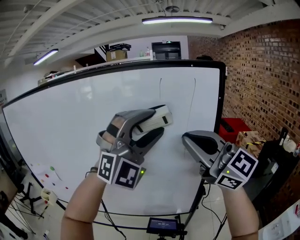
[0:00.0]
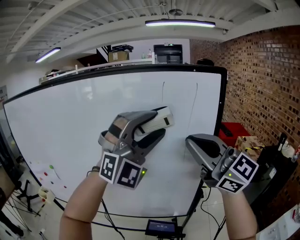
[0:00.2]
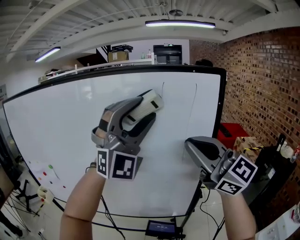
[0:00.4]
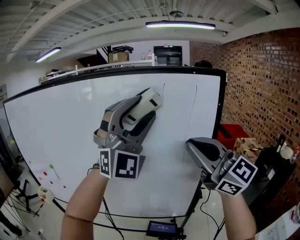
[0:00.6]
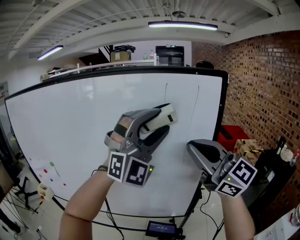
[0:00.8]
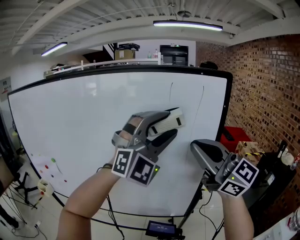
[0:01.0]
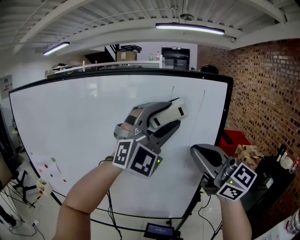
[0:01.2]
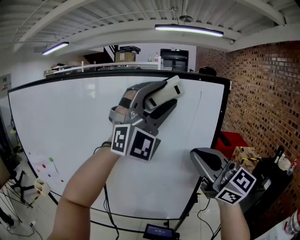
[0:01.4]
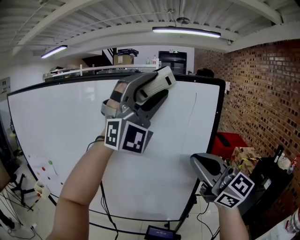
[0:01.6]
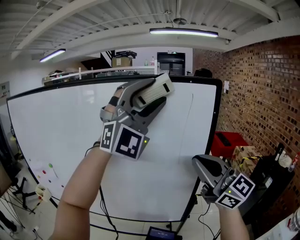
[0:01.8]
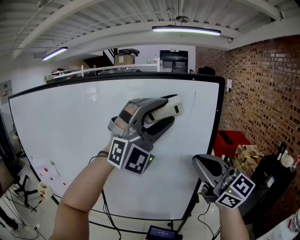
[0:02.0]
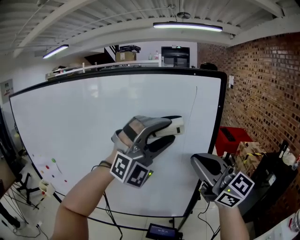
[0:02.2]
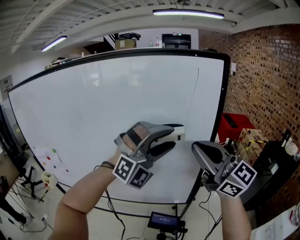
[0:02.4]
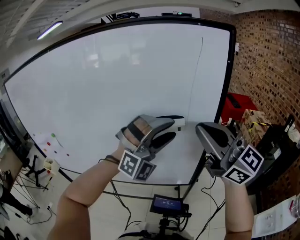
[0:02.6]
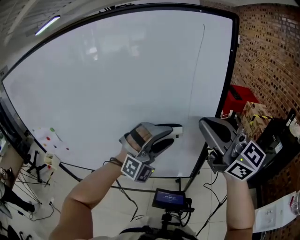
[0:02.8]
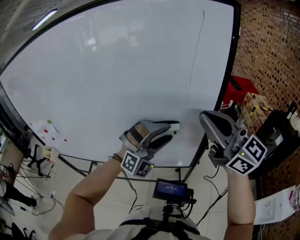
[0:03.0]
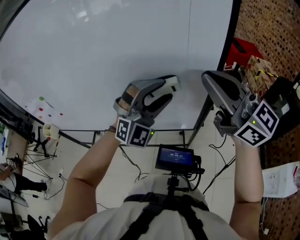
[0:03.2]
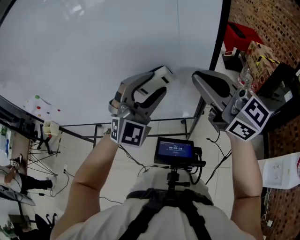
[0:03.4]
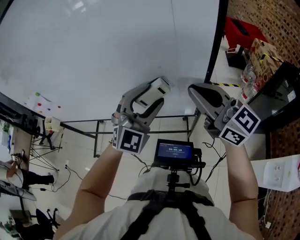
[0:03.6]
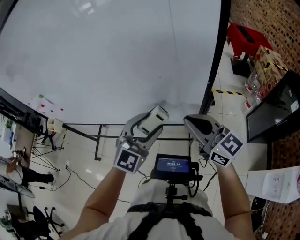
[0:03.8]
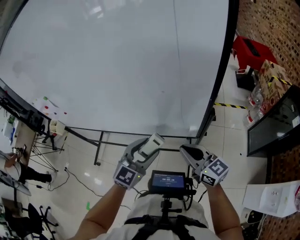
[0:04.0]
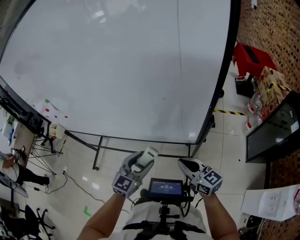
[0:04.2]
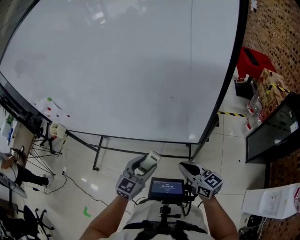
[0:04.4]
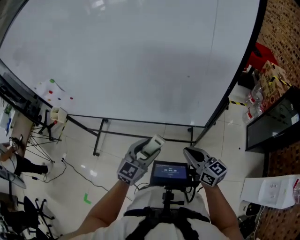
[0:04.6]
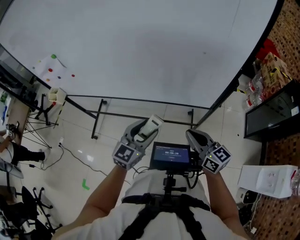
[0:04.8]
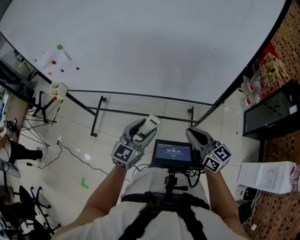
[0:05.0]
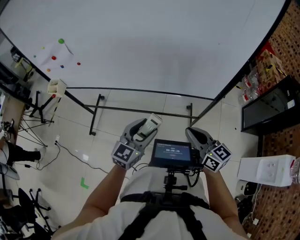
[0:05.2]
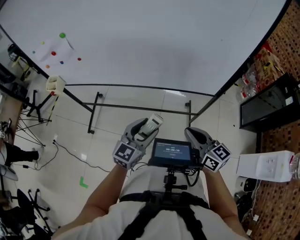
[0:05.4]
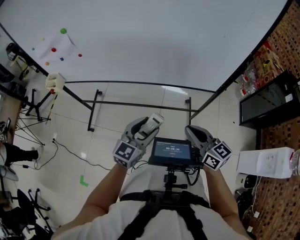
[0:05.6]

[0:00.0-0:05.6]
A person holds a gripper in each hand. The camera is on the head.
0:00.0 to 0:01.4: The left gripper swings up and down, approximately 10 cm each way, with 2 reversals.
0:01.4 to 0:02.8: The right gripper is displaced downward by some 10 cm. The left gripper shifts about 35 cm downward, and rotates some 30 degrees.
0:02.8 to 0:04.2: The right gripper heads downward, covering roughly 40 cm, and swivels roughly 40 degrees; the left gripper is displaced downward by about 25 cm, and twists roughly 80 degrees counterclockwise, seen from behind.
0:04.2 to 0:05.6: Both grippers travel together to the left and backward, approximately 25 cm.

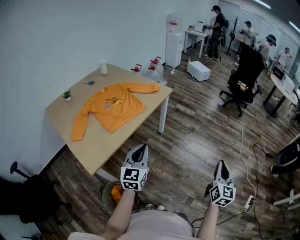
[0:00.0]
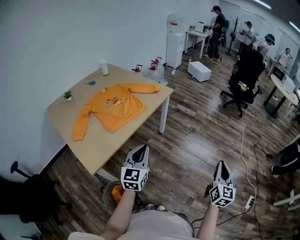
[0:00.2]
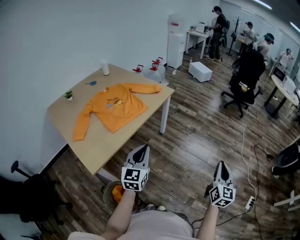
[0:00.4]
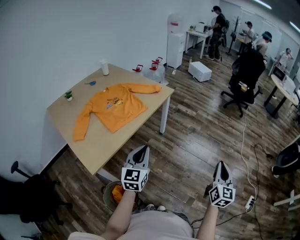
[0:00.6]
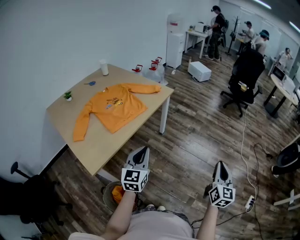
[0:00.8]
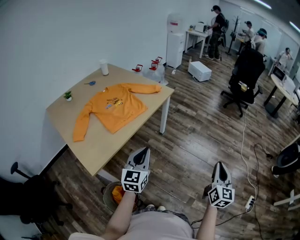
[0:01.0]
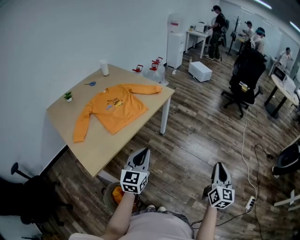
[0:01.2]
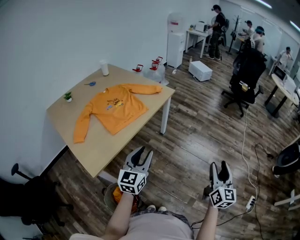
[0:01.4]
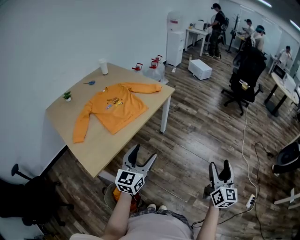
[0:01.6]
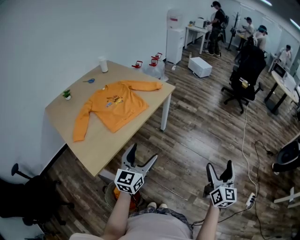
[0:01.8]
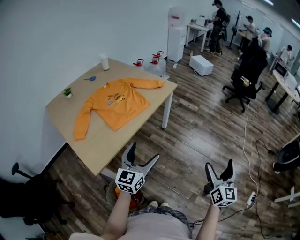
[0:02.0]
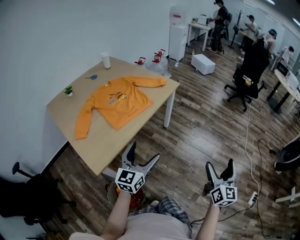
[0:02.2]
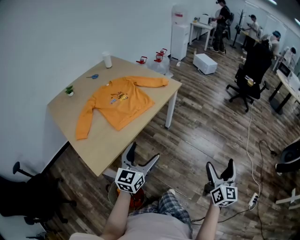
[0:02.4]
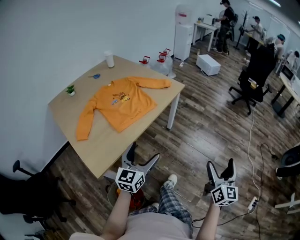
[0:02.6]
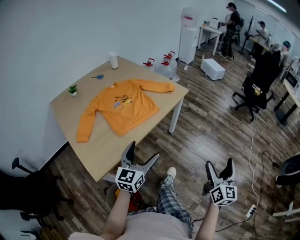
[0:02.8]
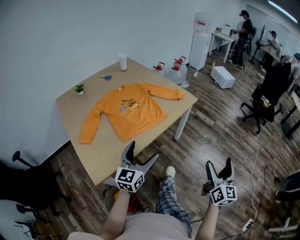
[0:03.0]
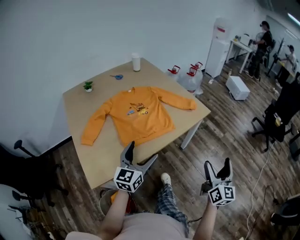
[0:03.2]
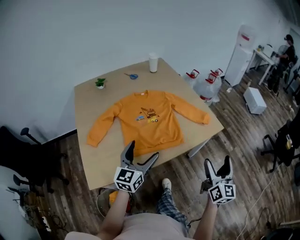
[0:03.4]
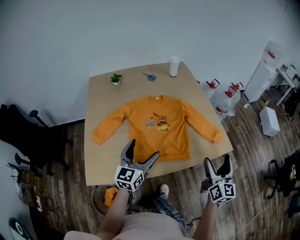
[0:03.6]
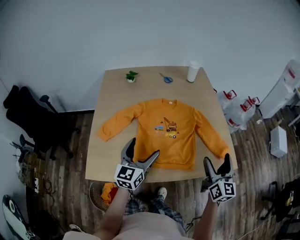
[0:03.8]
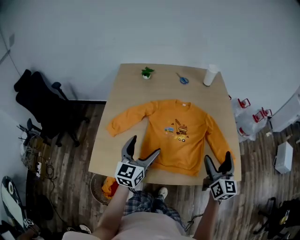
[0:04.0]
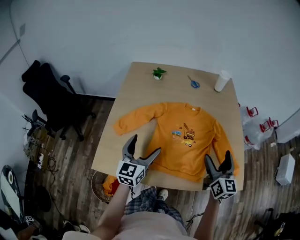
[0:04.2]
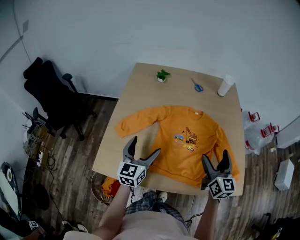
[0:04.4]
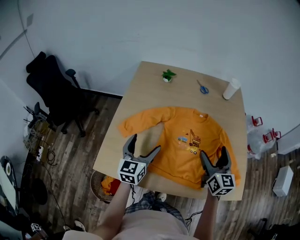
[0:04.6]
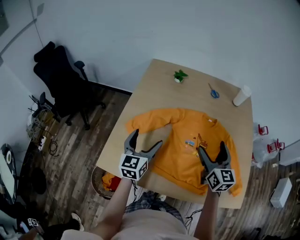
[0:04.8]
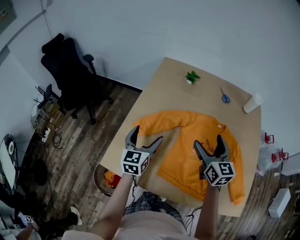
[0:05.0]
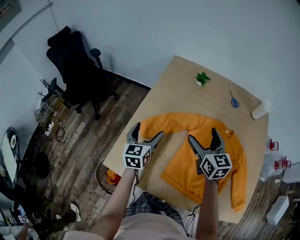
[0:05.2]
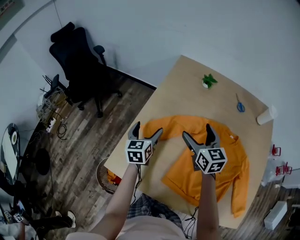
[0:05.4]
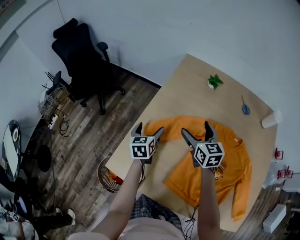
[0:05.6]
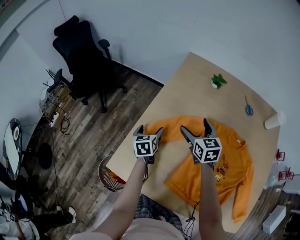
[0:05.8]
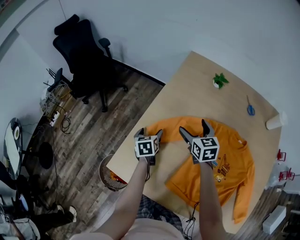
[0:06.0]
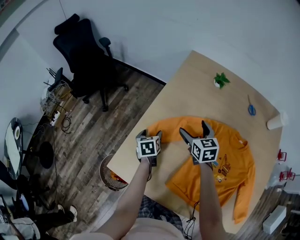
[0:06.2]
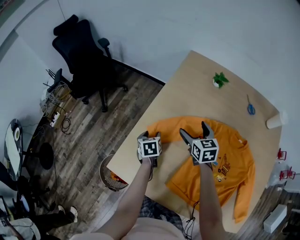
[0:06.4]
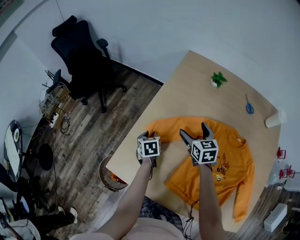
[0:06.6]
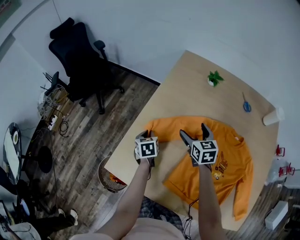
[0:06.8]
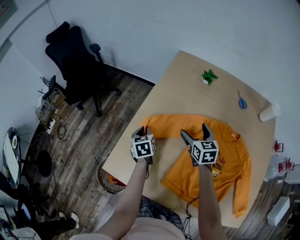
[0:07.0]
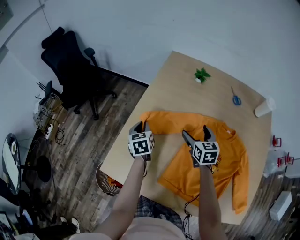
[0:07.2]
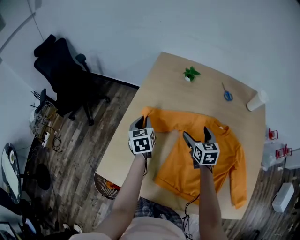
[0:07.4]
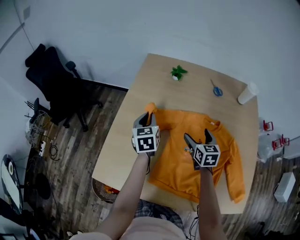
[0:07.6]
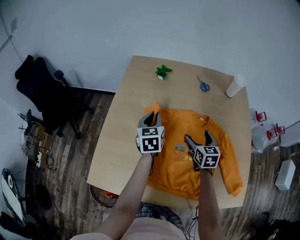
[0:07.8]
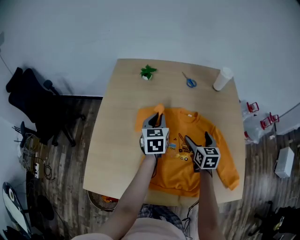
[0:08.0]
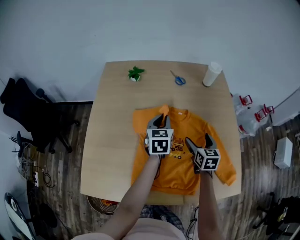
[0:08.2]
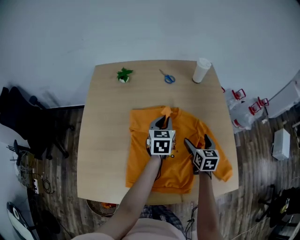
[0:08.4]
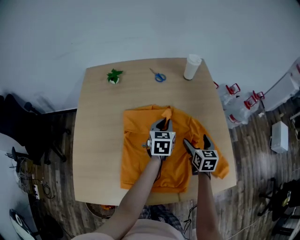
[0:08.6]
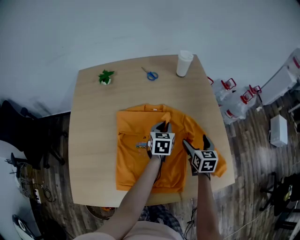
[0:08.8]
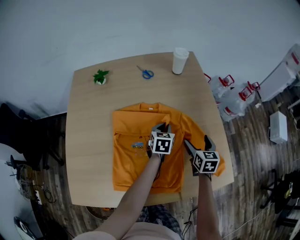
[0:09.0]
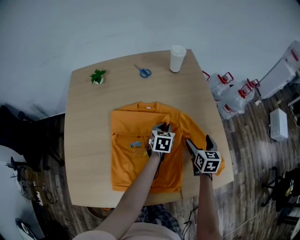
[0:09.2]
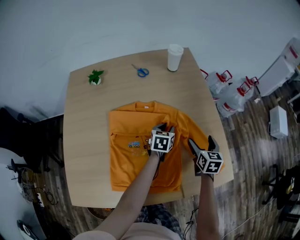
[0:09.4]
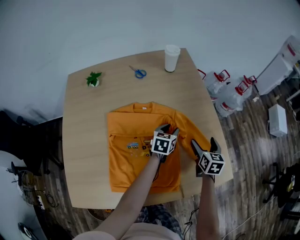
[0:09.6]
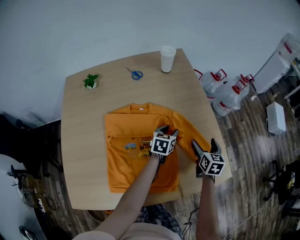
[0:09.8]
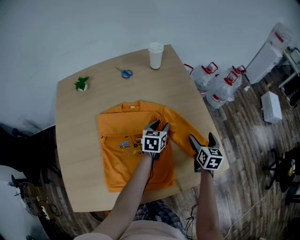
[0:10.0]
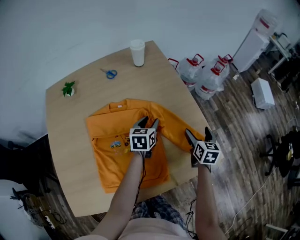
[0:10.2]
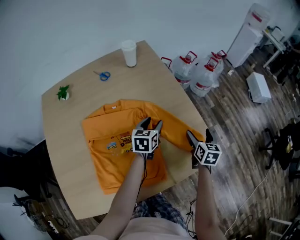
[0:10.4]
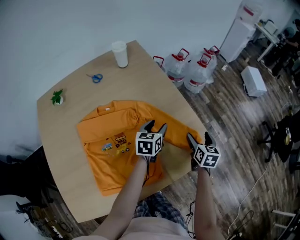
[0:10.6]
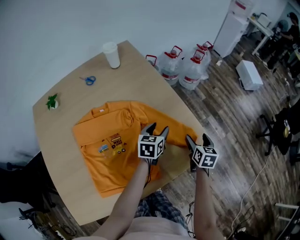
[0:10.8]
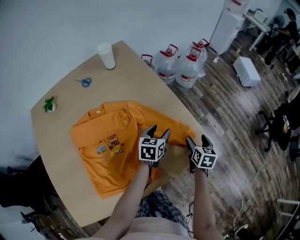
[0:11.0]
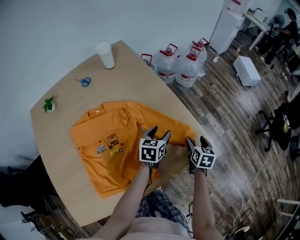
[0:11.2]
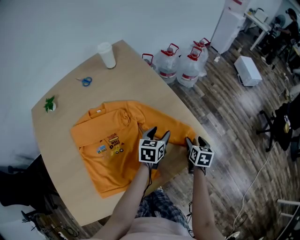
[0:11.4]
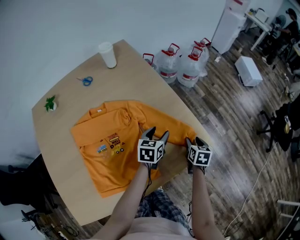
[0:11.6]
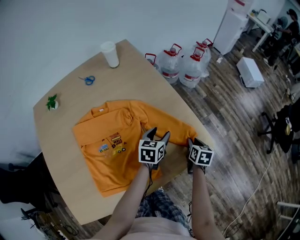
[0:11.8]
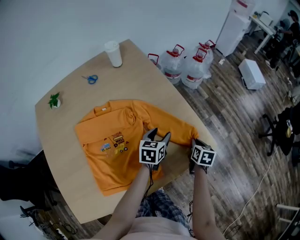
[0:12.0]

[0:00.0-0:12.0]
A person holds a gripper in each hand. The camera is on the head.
0:00.0 to 0:01.6: The left gripper opens. The right gripper opens up.
0:01.6 to 0:03.0: Both grippers move forward and to the left, about 15 cm. The right gripper opens.
0:03.0 to 0:04.4: The right gripper ends up roughly 60 cm from where it was, and swivels roughly 60 degrees. Meanwhile the left gripper shifts by roughly 30 cm, and rotates some 60 degrees.
0:04.4 to 0:06.0: The right gripper moves approximately 40 cm, and turns by about 40 degrees, while the left gripper ends up some 35 cm from where it was, and points its fingers approximately 30 degrees further downward.
0:06.0 to 0:07.6: The right gripper is displaced to the right and backward by roughly 20 cm, and rotates approximately 20 degrees; the left gripper heads to the right and upward, covering some 20 cm, changes its angle by about 20 degrees, and closes.
0:07.6 to 0:09.0: The left gripper shifts by some 40 cm, and swivels about 40 degrees. Meanwhile the right gripper changes place by about 30 cm, and turns by approximately 30 degrees.
0:09.0 to 0:10.4: Both grippers travel together to the right, about 15 cm. The right gripper changes its angle by approximately 20 degrees.
0:10.4 to 0:12.0: The left gripper heads to the right, covering about 10 cm. Meanwhile the right gripper heads downward, to the right and backward, covering roughly 10 cm, and closes up.

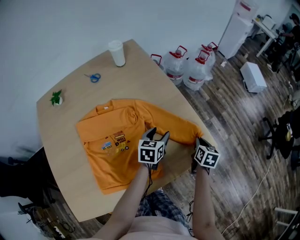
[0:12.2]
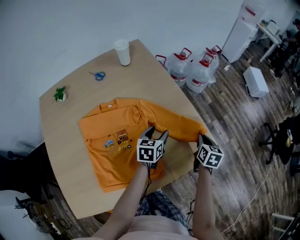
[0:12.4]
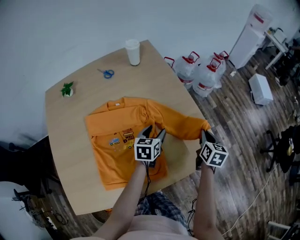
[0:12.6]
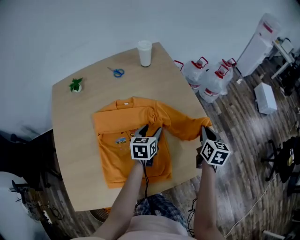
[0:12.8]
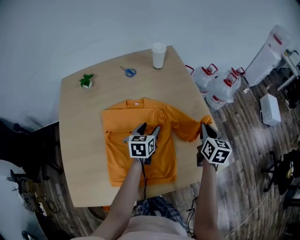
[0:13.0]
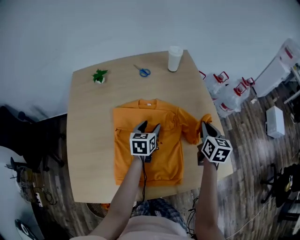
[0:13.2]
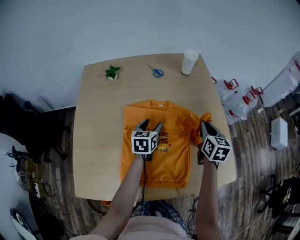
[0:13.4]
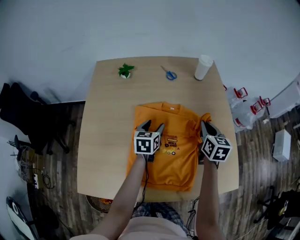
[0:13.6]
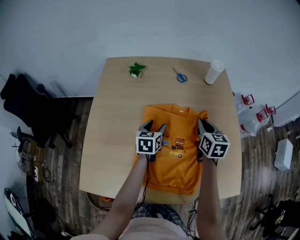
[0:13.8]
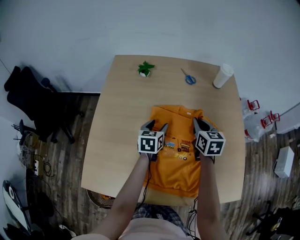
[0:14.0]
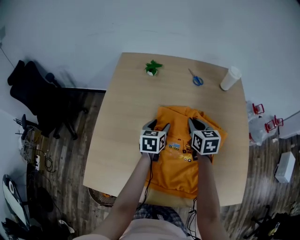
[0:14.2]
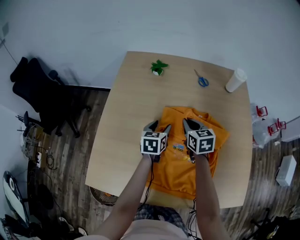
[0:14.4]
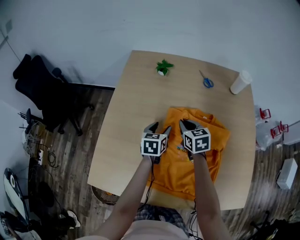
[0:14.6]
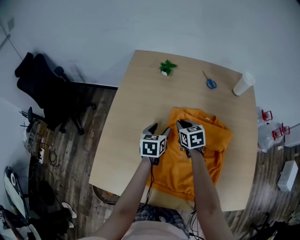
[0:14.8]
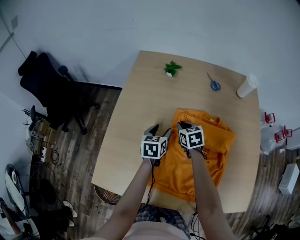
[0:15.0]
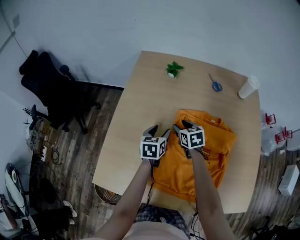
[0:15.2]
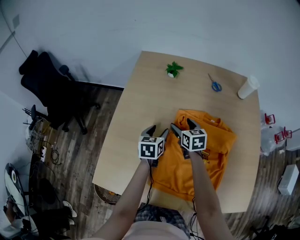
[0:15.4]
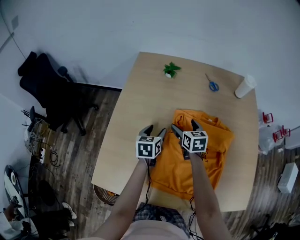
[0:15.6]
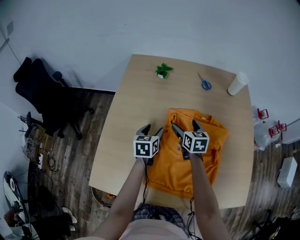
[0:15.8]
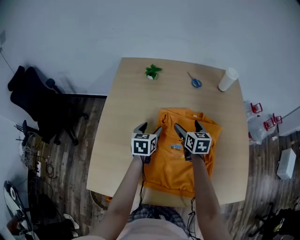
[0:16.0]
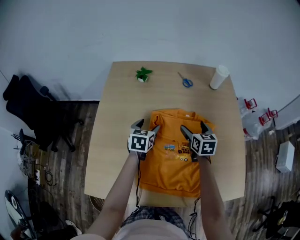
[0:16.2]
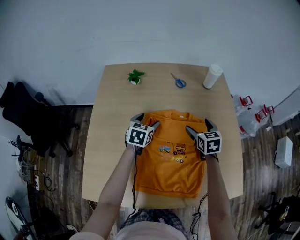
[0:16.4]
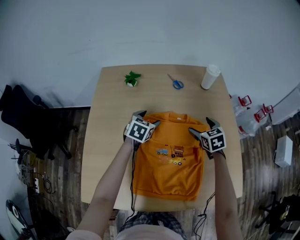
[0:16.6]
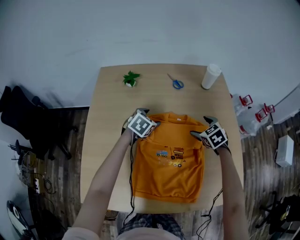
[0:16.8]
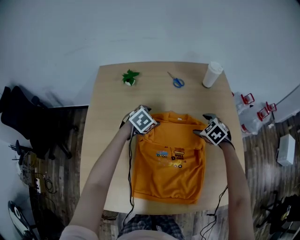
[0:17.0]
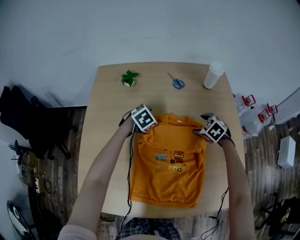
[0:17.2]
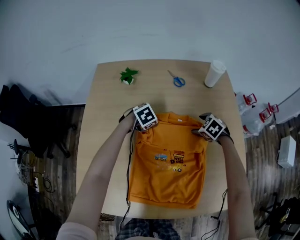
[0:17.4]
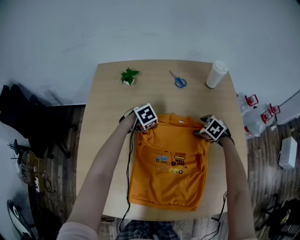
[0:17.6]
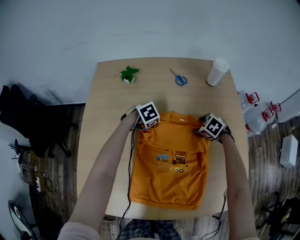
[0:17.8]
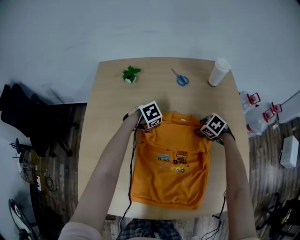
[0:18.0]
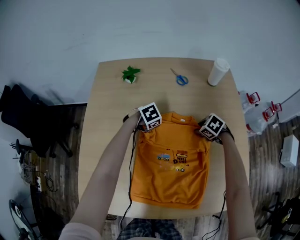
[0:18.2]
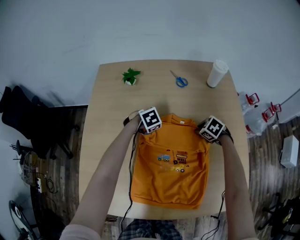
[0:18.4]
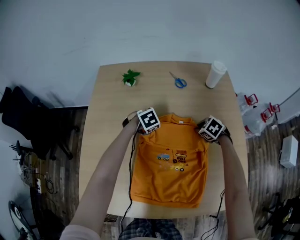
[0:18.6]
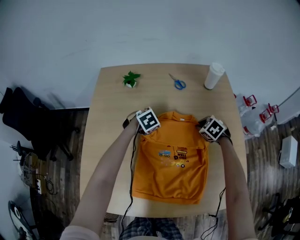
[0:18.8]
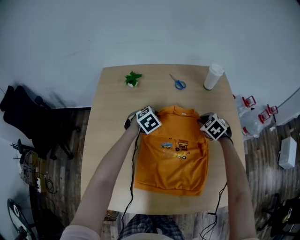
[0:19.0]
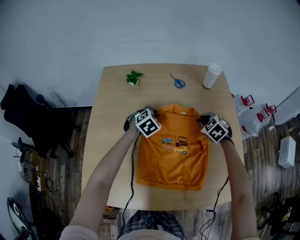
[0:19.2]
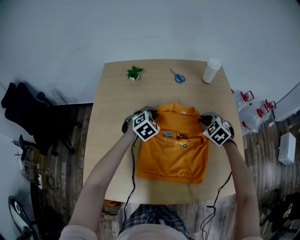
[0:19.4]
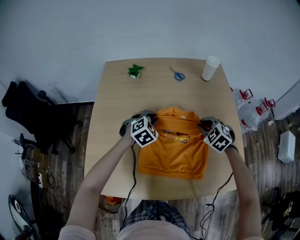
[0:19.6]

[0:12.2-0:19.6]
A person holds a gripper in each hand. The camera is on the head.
0:12.2 to 0:13.6: The right gripper changes place by approximately 40 cm, and rotates about 40 degrees, while the left gripper changes place by about 35 cm, and rotates about 30 degrees.
0:13.6 to 0:15.2: The left gripper changes place by roughly 20 cm. Meanwhile the right gripper shifts by approximately 35 cm, swivels some 40 degrees, and opens its fingers.
0:15.2 to 0:16.6: The right gripper goes approximately 25 cm to the right, and opens, while the left gripper is displaced to the right and forward by roughly 15 cm, and changes its angle by about 40 degrees.
0:16.6 to 0:18.2: The two grippers go roughly 15 cm downward. The right gripper turns by about 40 degrees, and closes its fingers. Meanwhile the left gripper points its fingers about 30 degrees further downward, and closes up.
0:18.2 to 0:19.6: Both grippers travel together upward, about 15 cm. The right gripper swivels about 30 degrees; the left gripper turns by about 40 degrees.
